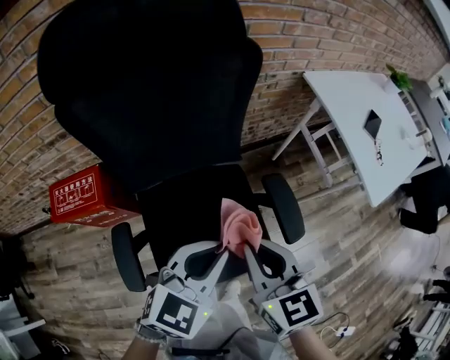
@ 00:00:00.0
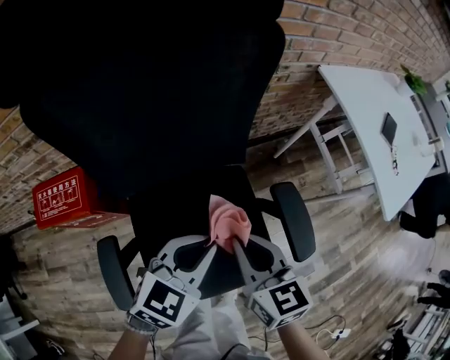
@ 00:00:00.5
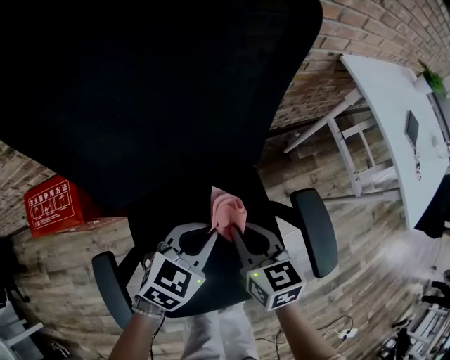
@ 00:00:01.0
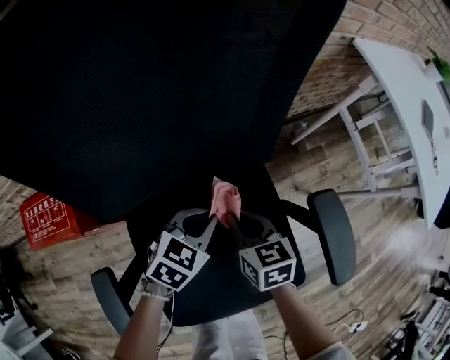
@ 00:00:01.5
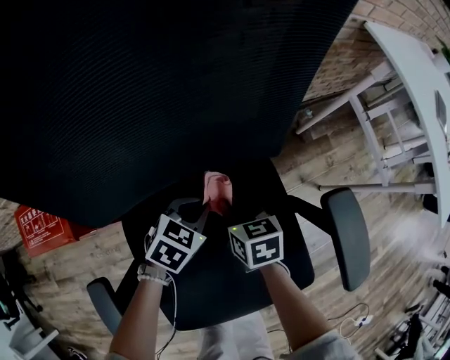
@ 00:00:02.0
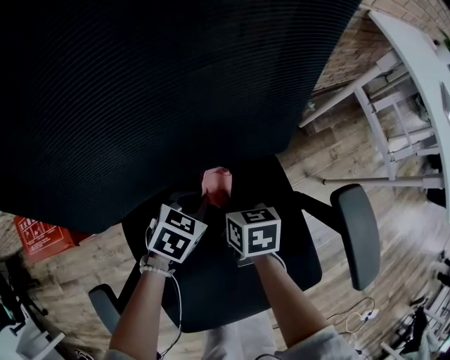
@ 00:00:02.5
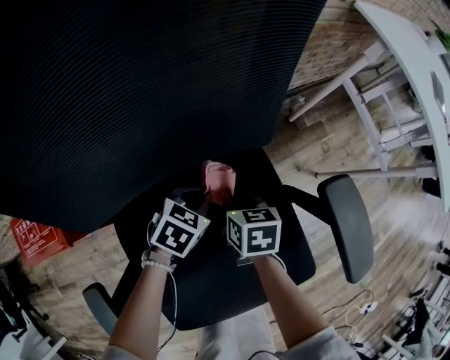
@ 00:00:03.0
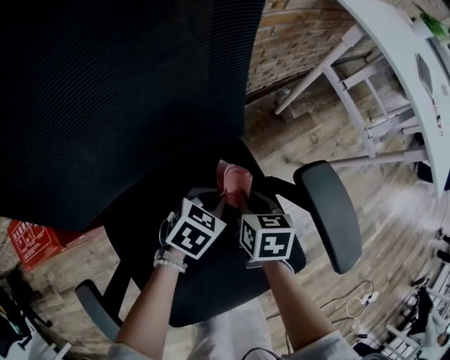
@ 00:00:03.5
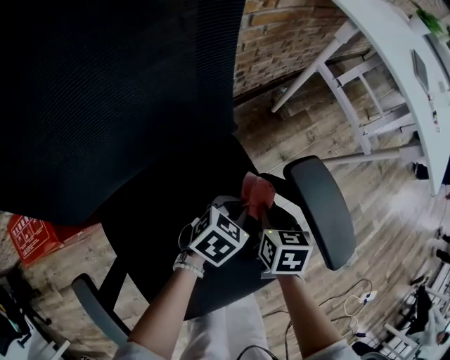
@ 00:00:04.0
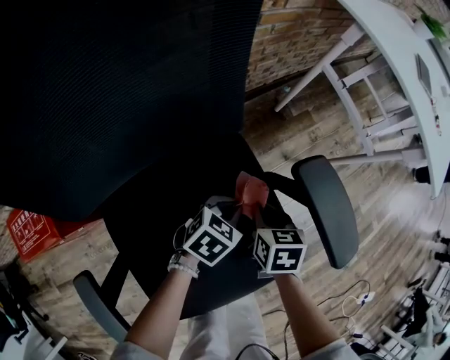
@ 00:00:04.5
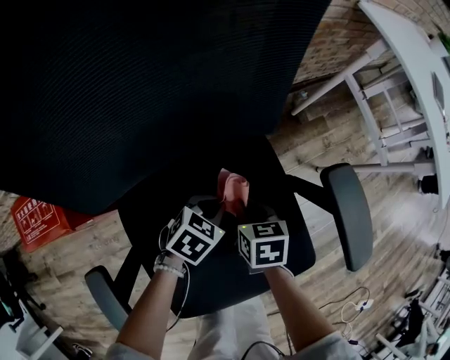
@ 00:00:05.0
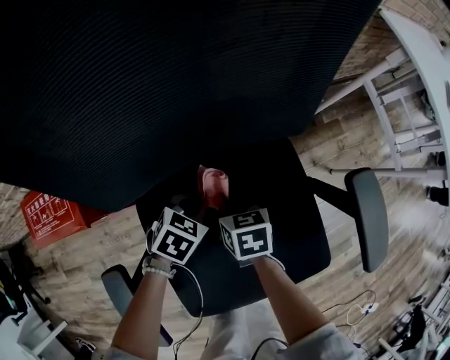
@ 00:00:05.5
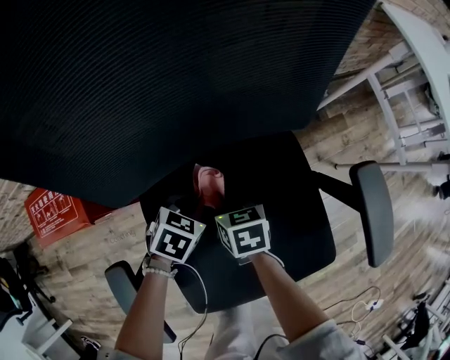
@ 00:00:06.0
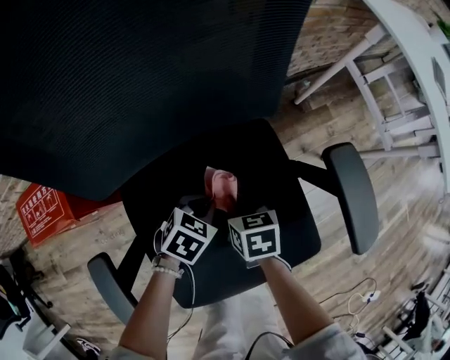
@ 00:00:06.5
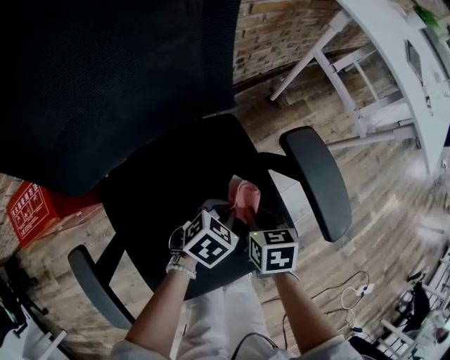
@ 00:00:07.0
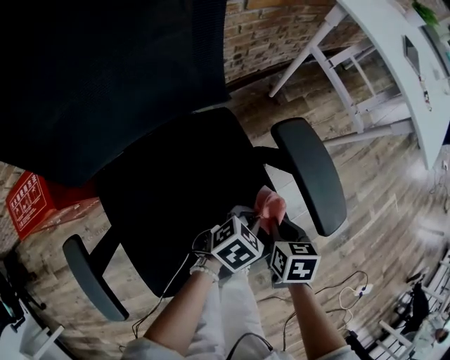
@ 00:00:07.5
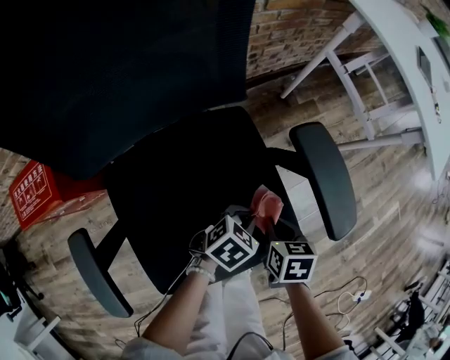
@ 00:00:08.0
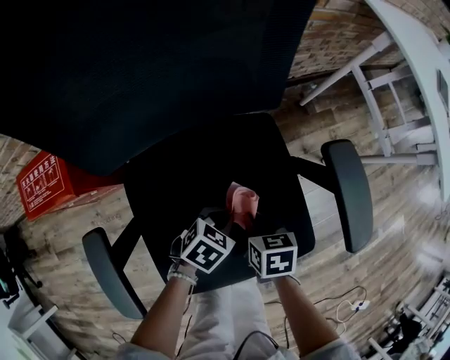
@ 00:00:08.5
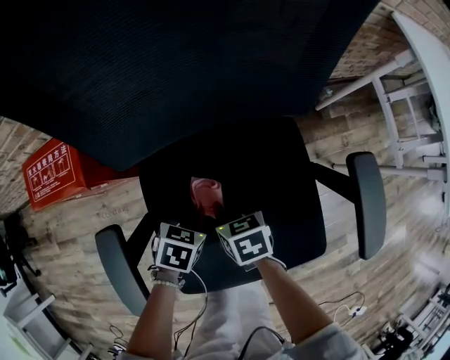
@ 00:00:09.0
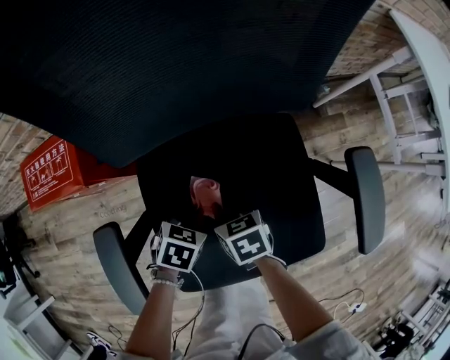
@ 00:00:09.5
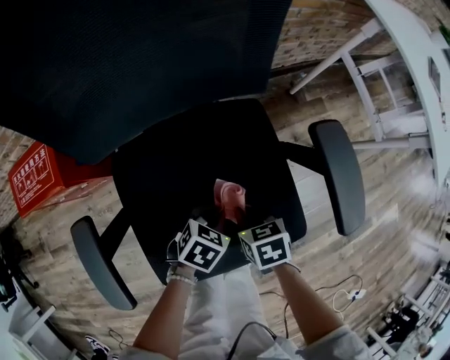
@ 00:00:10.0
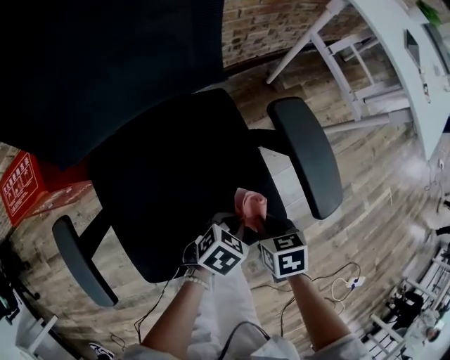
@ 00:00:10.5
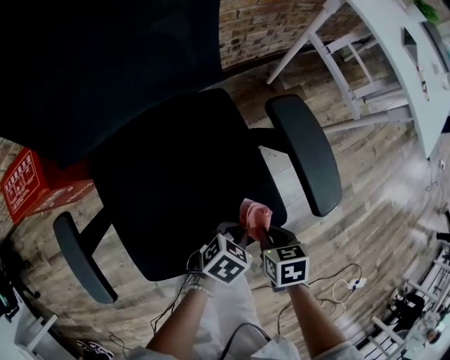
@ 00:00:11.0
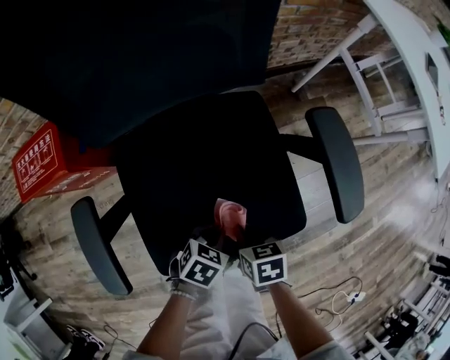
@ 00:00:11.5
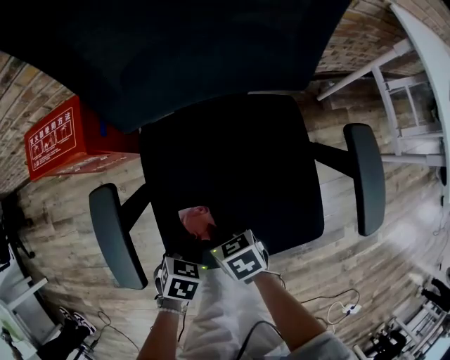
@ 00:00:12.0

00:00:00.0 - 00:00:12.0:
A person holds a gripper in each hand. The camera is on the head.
00:00:00.0 - 00:00:02.0: The grippers both shift downward and forward by roughly 50 cm. The right gripper changes its angle by about 30 degrees, while the left gripper changes its angle by approximately 30 degrees.
00:00:02.0 - 00:00:04.0: The right gripper changes place by some 20 cm, and swivels some 30 degrees. The left gripper shifts by some 20 cm.
00:00:04.0 - 00:00:06.0: The left gripper moves about 25 cm, and turns by approximately 30 degrees. Meanwhile the right gripper shifts by approximately 25 cm, and changes its angle by about 30 degrees.
00:00:06.0 - 00:00:08.0: The left gripper changes place by about 30 cm, and rotates some 20 degrees; the right gripper ends up roughly 30 cm from where it was, and swivels about 20 degrees.
00:00:08.0 - 00:00:10.0: The right gripper changes its angle by approximately 30 degrees.
00:00:10.0 - 00:00:12.0: The right gripper ends up approximately 15 cm from where it was, and turns by about 20 degrees. Meanwhile the left gripper ends up approximately 15 cm from where it was, and changes its angle by some 20 degrees.

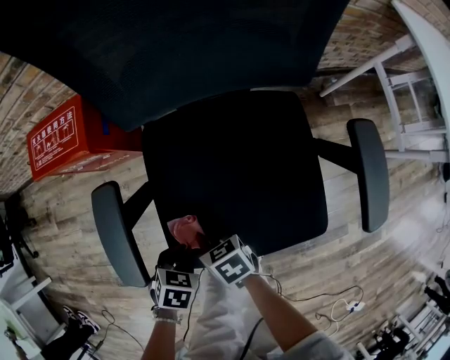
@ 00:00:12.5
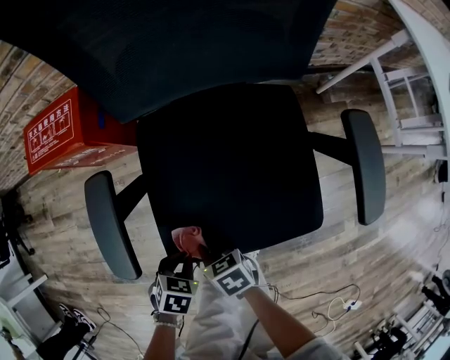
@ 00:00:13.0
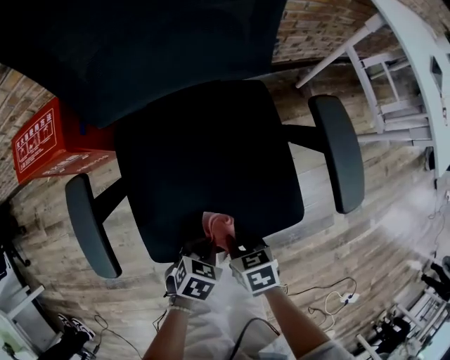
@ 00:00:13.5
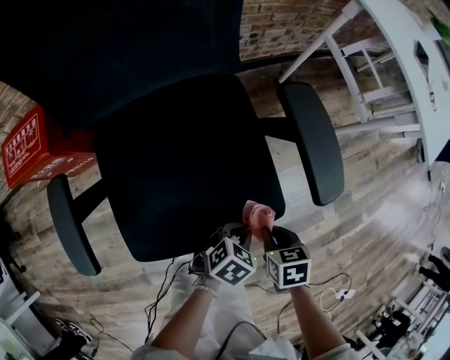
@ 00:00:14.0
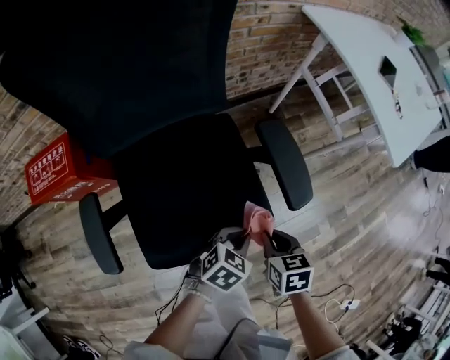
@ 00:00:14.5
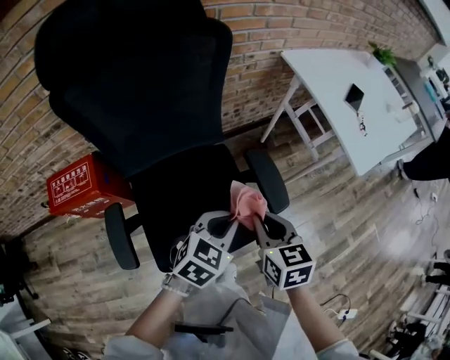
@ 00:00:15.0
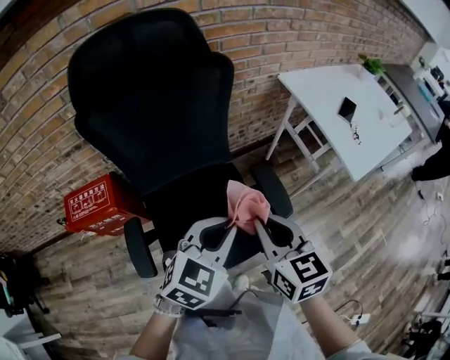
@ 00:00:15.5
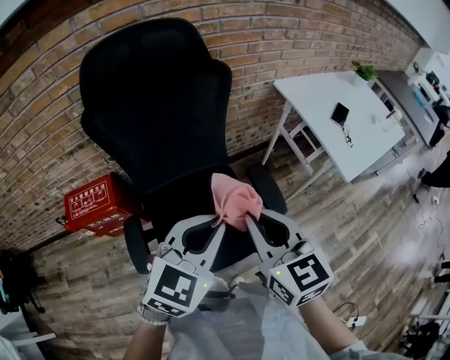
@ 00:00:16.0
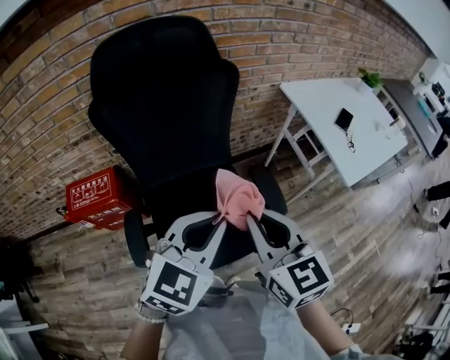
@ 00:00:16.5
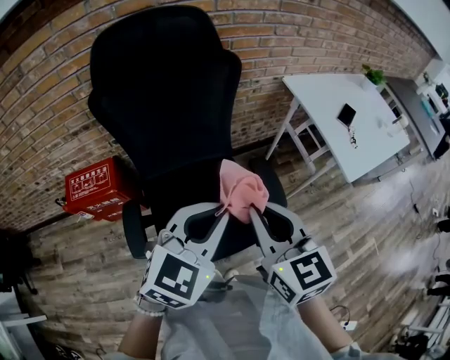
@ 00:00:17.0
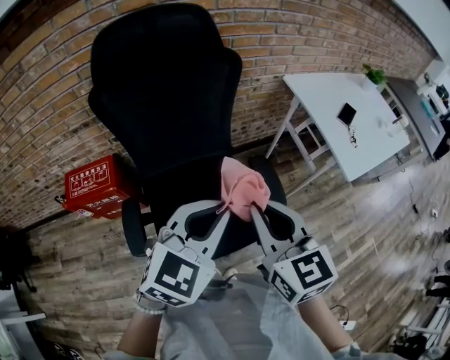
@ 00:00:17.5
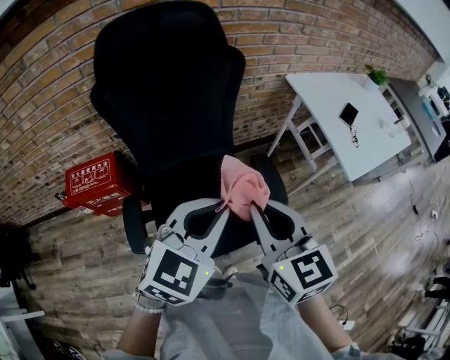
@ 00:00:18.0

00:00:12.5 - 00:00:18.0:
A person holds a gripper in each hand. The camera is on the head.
00:00:12.5 - 00:00:14.5: The right gripper changes place by approximately 35 cm, and changes its angle by about 40 degrees; the left gripper shifts by some 35 cm, and swivels some 40 degrees.
00:00:14.5 - 00:00:16.0: The grippers both shift upward by roughly 40 cm. The left gripper changes its angle by approximately 40 degrees. Meanwhile the right gripper tips its fingers upward by some 40 degrees.
00:00:16.0 - 00:00:18.0: The grippers make only small movements.

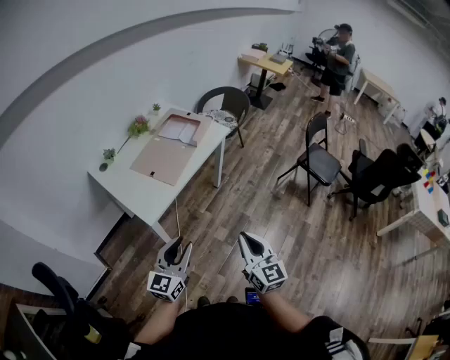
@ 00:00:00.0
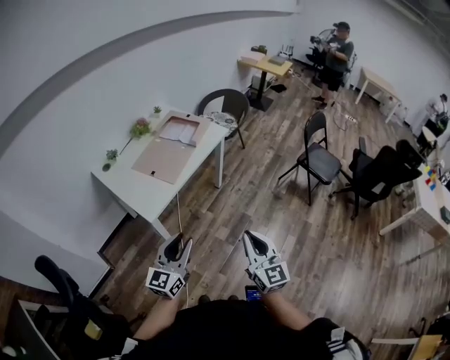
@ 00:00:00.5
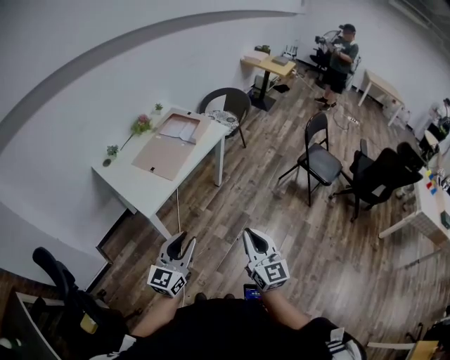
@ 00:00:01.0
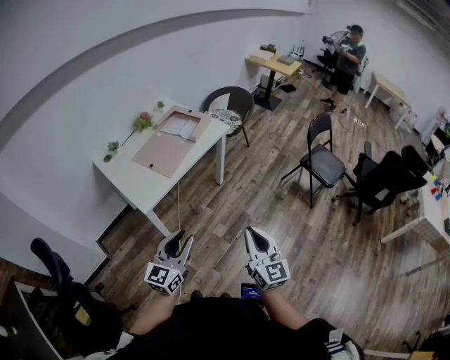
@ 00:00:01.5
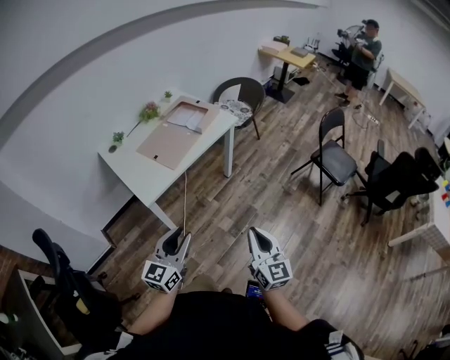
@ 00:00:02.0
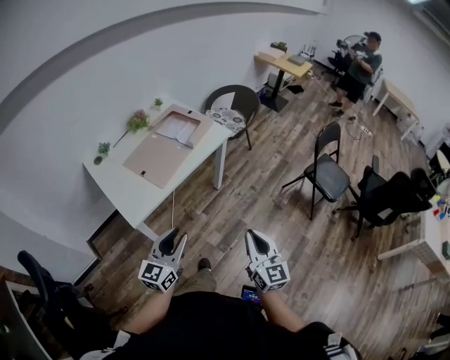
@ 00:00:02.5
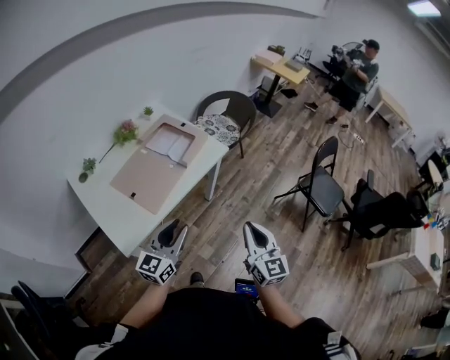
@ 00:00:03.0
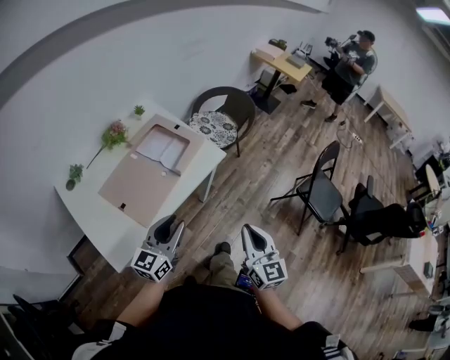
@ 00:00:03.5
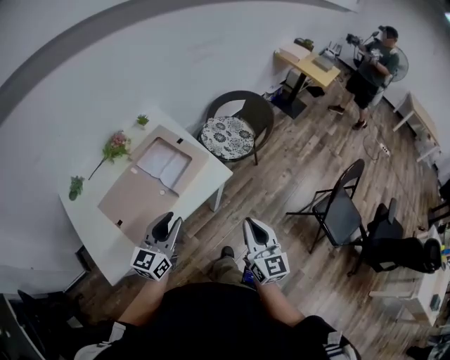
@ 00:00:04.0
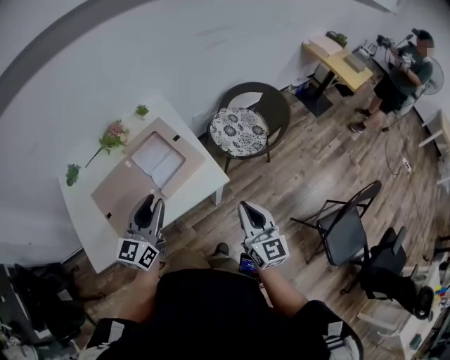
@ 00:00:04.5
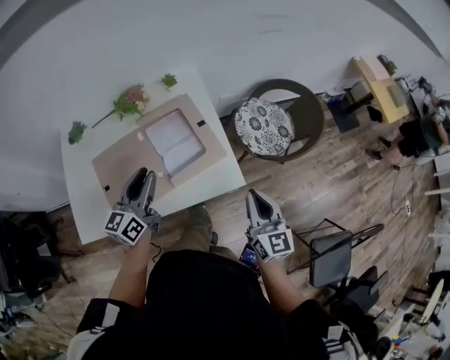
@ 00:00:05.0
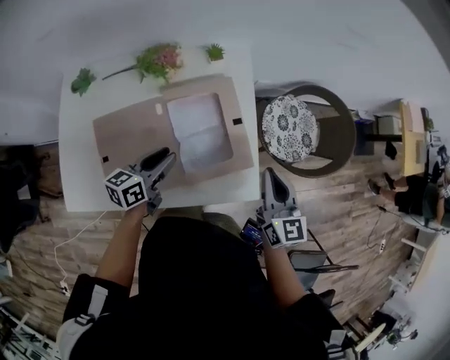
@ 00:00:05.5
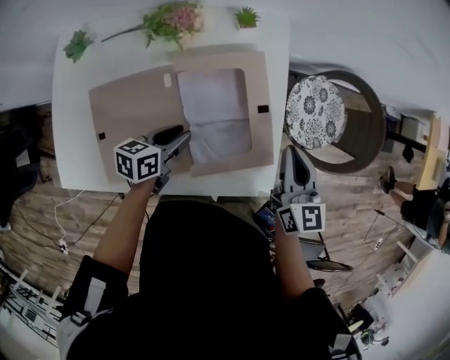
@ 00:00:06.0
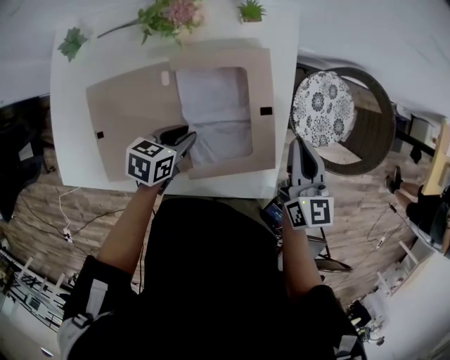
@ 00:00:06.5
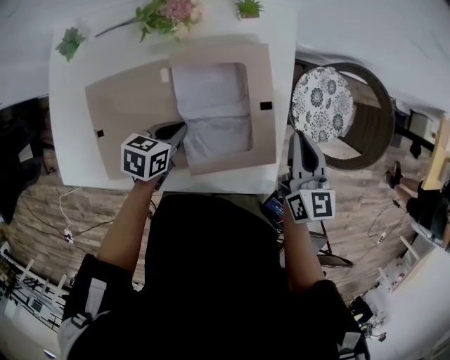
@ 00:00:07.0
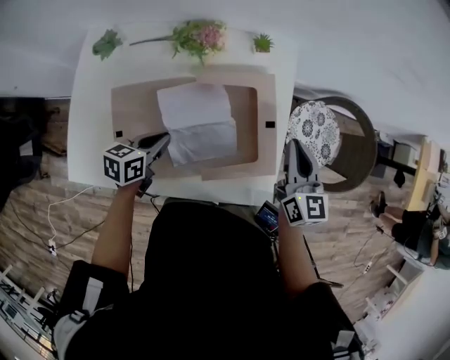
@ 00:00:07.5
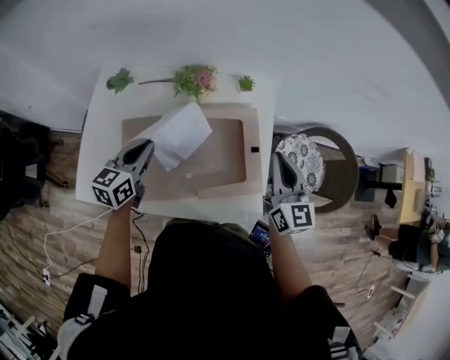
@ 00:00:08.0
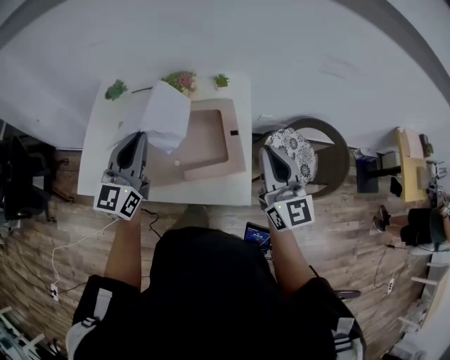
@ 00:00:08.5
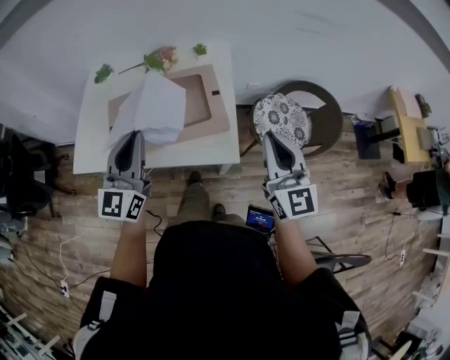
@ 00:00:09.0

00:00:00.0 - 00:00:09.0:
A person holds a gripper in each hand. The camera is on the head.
00:00:00.0 - 00:00:02.0: The two grippers go about 10 cm to the right.
00:00:02.0 - 00:00:04.5: Both grippers are carried forward, approximately 60 cm. The left gripper changes its angle by roughly 20 degrees, while the right gripper rotates some 20 degrees.
00:00:04.5 - 00:00:07.0: The right gripper heads forward, covering about 35 cm, and swivels approximately 30 degrees; the left gripper moves downward and forward, about 35 cm, angles its fingers downward, by some 50 degrees, and closes.
00:00:07.0 - 00:00:09.0: The left gripper travels upward and backward by some 40 cm, and tips its fingers upward by roughly 60 degrees; the right gripper shifts roughly 35 cm backward and upward, and turns by roughly 30 degrees.
